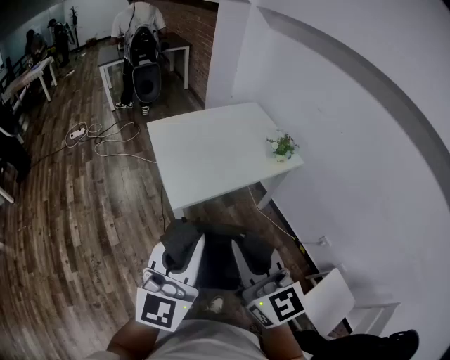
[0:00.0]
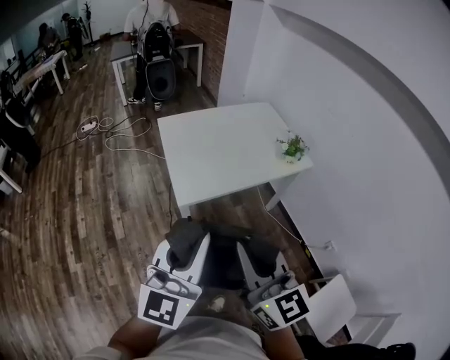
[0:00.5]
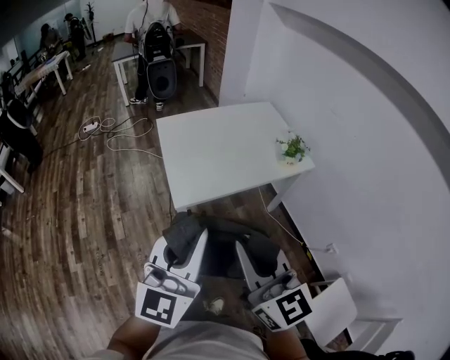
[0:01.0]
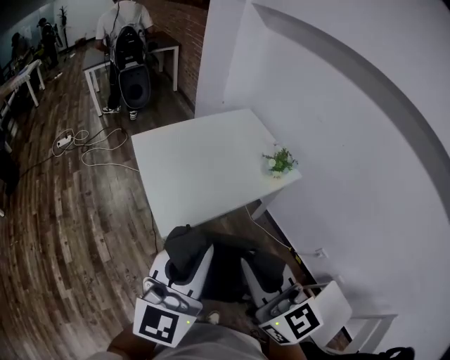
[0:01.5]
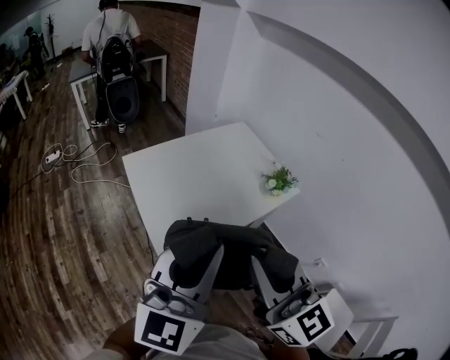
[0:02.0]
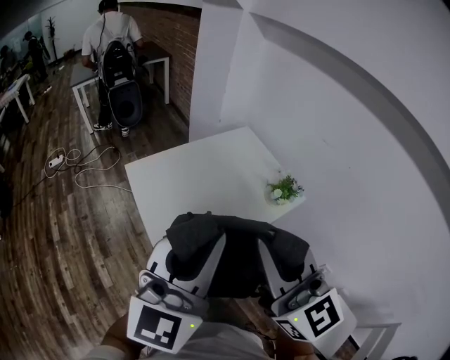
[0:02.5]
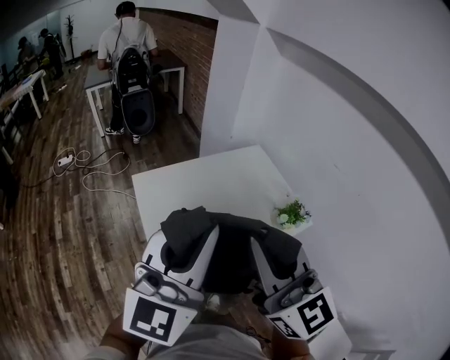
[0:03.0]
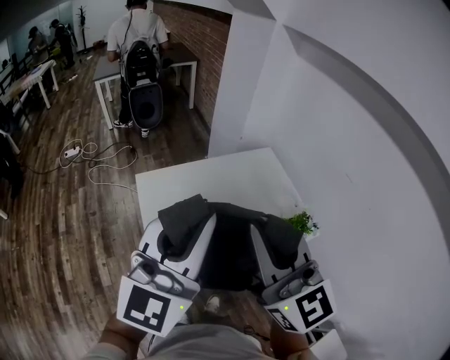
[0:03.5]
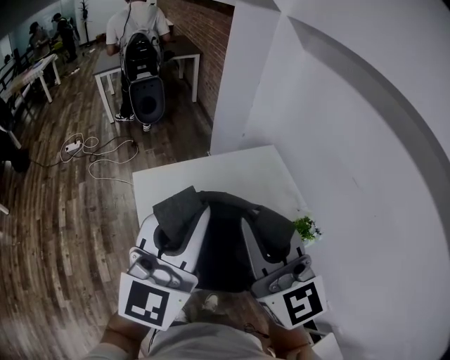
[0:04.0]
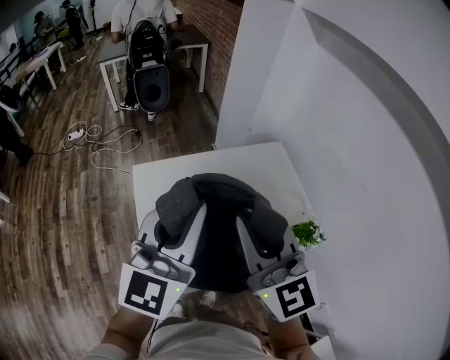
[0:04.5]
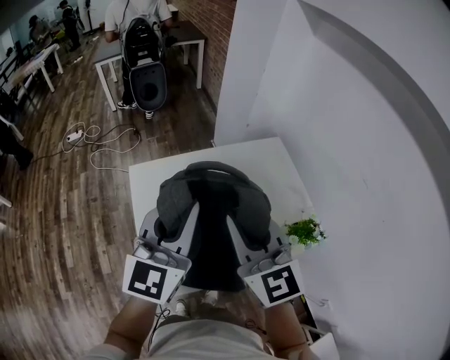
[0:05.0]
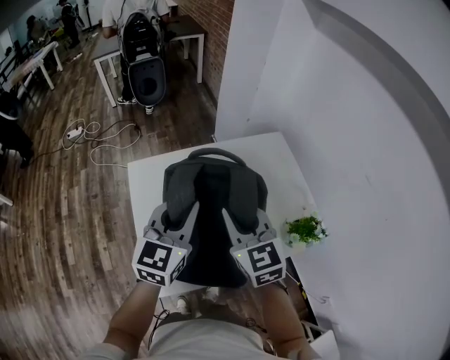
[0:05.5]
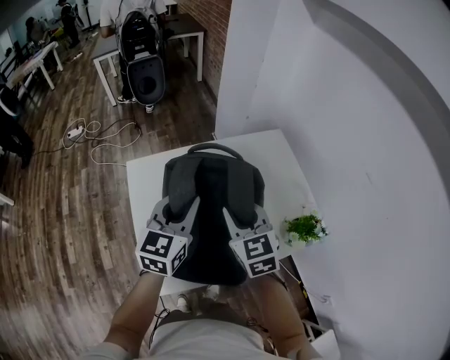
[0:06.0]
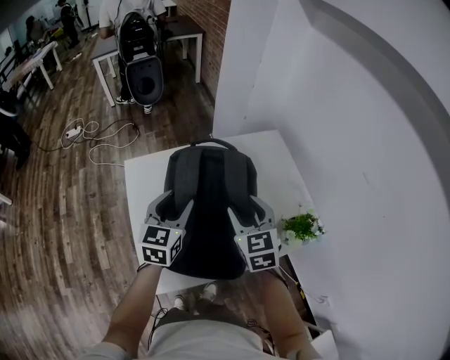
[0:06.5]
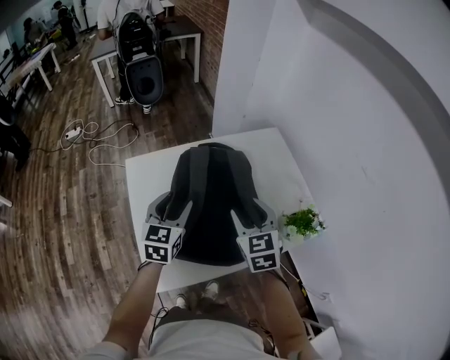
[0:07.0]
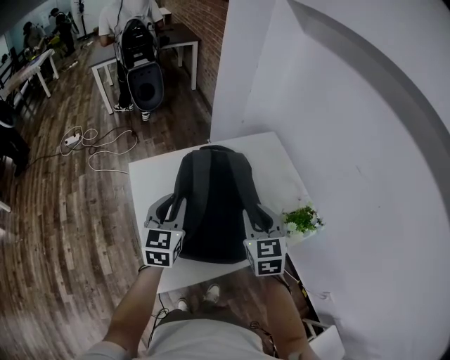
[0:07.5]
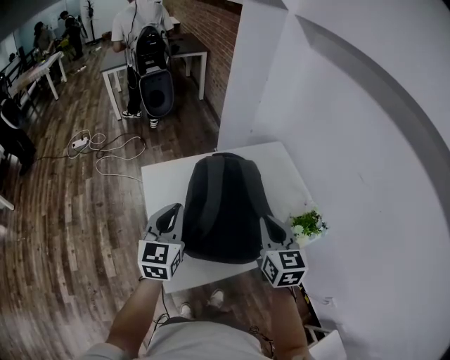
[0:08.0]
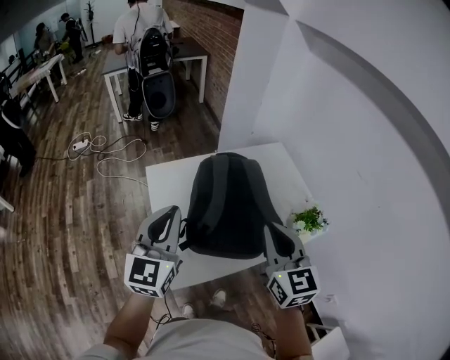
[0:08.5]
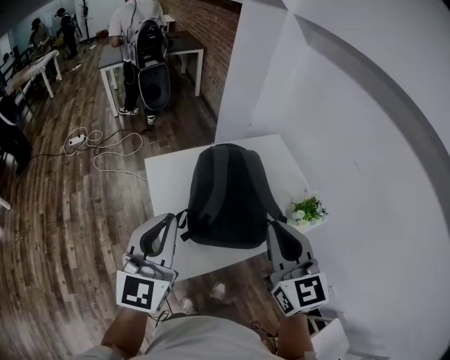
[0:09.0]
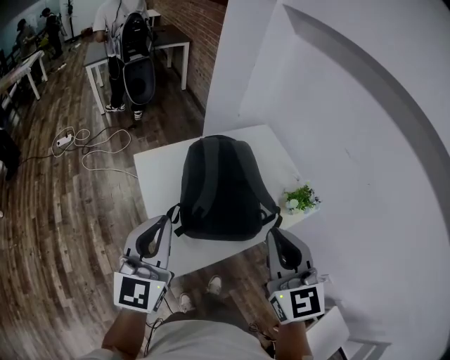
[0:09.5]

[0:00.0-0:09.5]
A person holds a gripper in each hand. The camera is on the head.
0:00.0 to 0:02.0: Both grippers travel together forward, roughly 25 cm.
0:02.0 to 0:04.0: The two grippers go some 30 cm forward.
0:04.0 to 0:05.5: The two grippers go about 25 cm downward and forward. The left gripper turns by some 30 degrees. The right gripper swivels about 30 degrees.
0:05.5 to 0:07.5: The left gripper is displaced downward and to the left by approximately 10 cm, and opens, then closes again, while the right gripper moves to the right and downward, about 10 cm, and opens up.
0:07.5 to 0:09.5: The left gripper travels backward, upward and to the left by some 25 cm, and closes up; the right gripper travels backward and upward by about 25 cm, and closes.

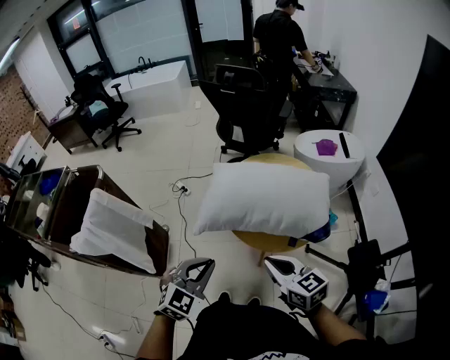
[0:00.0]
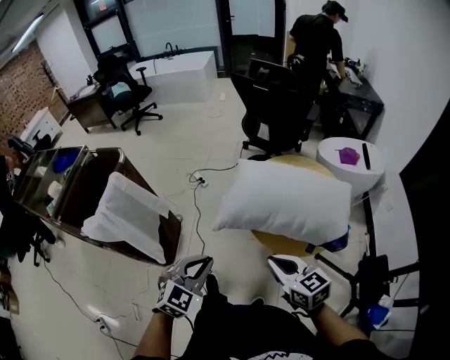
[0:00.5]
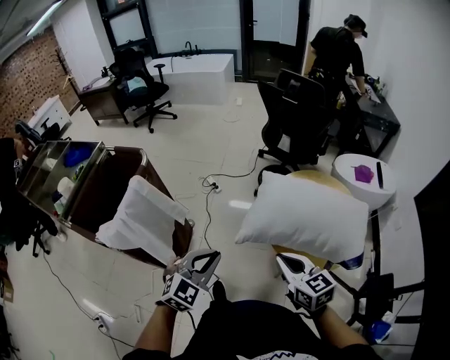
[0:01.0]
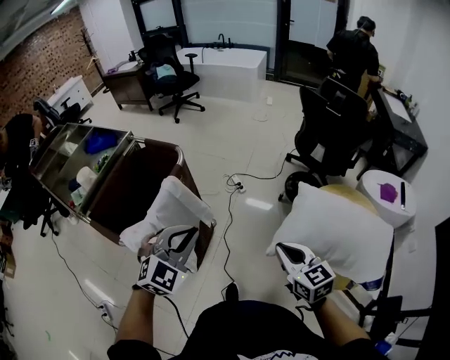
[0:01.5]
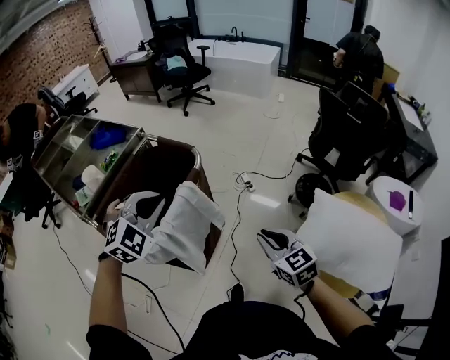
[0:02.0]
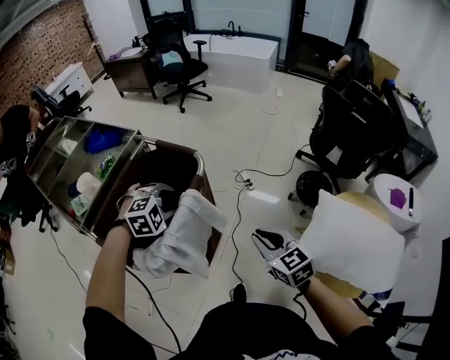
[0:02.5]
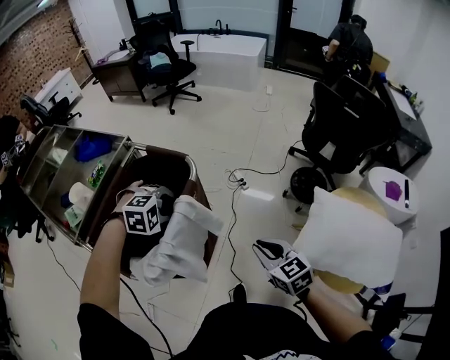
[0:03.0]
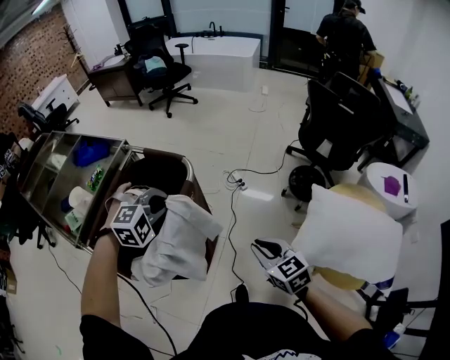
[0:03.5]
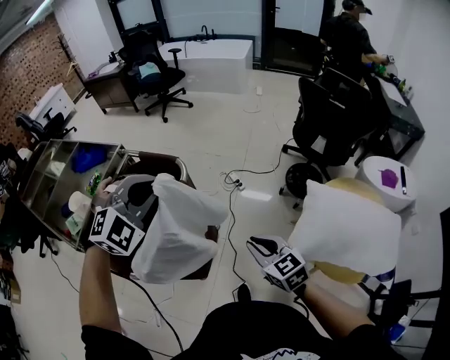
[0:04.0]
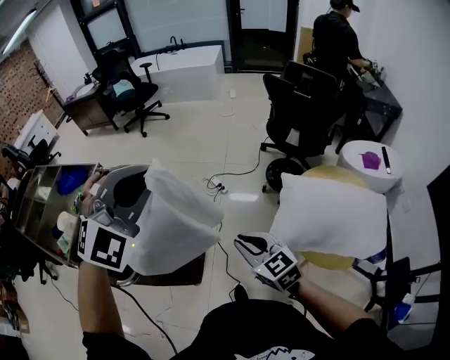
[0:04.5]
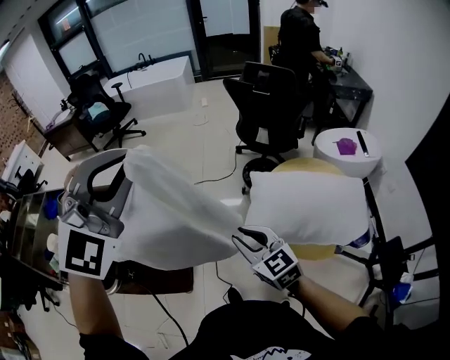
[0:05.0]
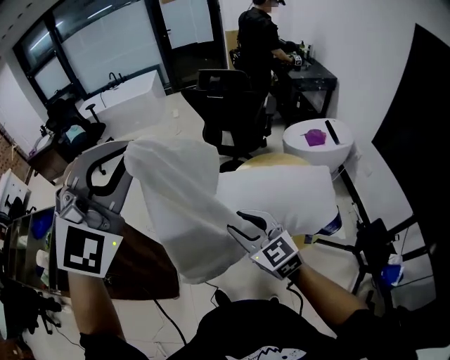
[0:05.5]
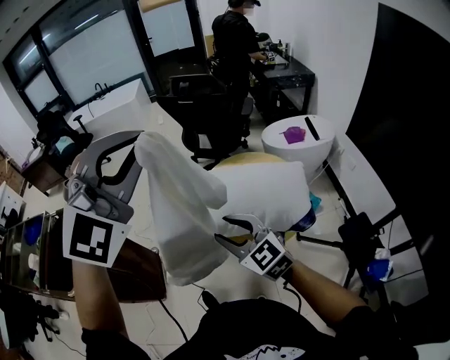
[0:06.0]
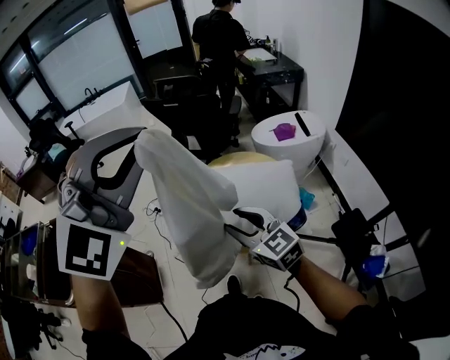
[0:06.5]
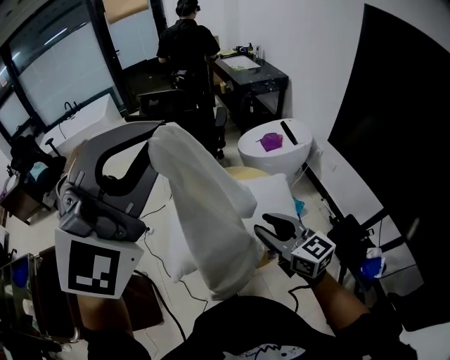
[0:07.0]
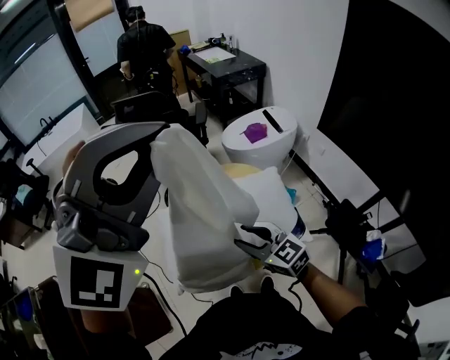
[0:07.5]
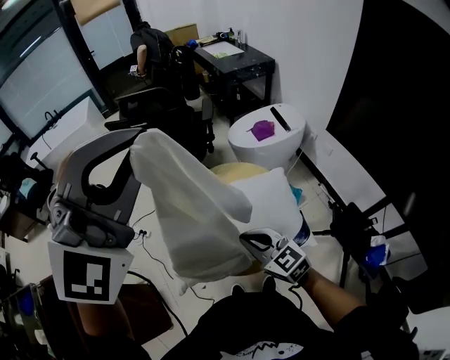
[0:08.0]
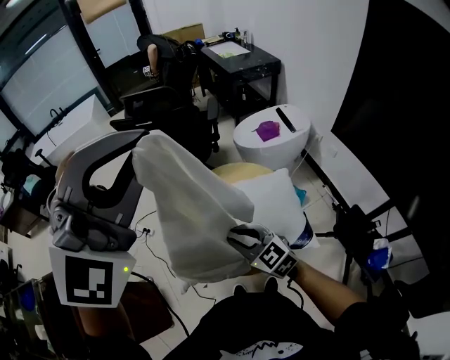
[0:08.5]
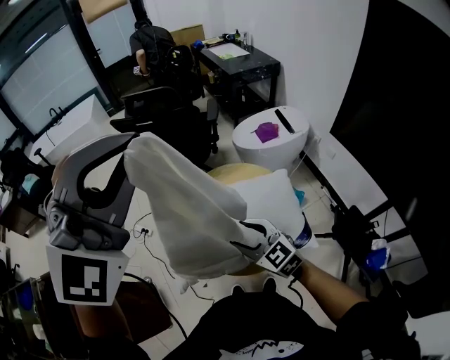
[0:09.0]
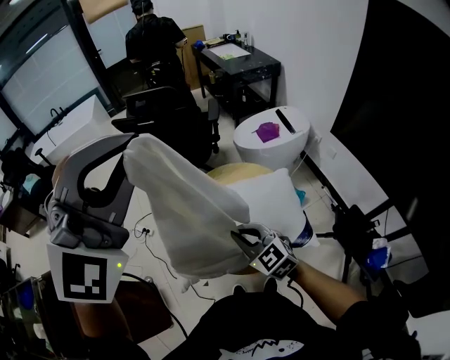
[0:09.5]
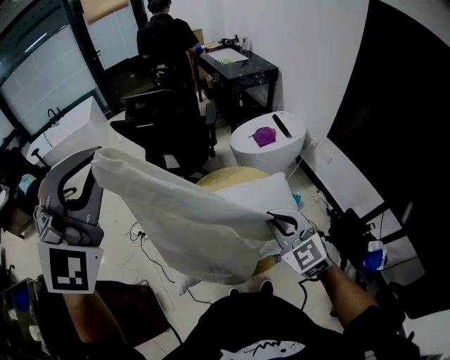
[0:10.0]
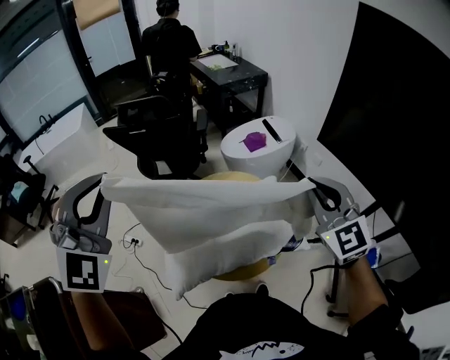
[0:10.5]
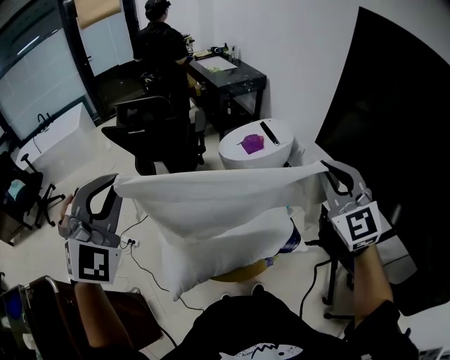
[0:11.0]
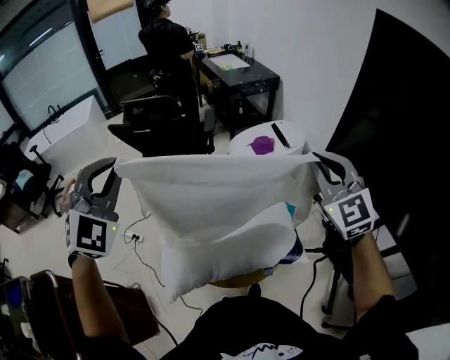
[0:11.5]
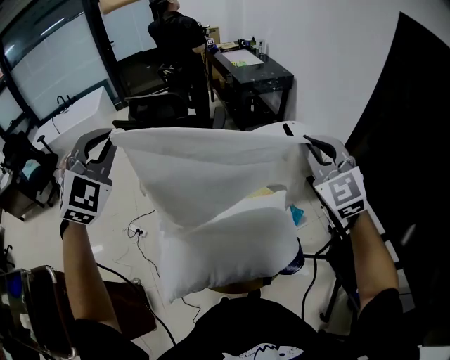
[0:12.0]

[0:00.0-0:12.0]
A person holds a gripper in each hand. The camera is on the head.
0:00.0 to 0:02.0: The pair of grippers is taken about 50 cm. The left gripper changes its angle by some 30 degrees. Meanwhile the right gripper rotates about 30 degrees.
0:02.0 to 0:04.0: The left gripper moves forward, about 5 cm, reaches about 15 cm downward, then returns, changes its angle by about 20 degrees, and opens and closes again.
0:04.0 to 0:06.0: The right gripper ends up some 40 cm from where it was, turns by roughly 20 degrees, and opens, while the left gripper shifts by approximately 60 cm, and changes its angle by about 40 degrees.
0:06.0 to 0:08.0: The left gripper shifts about 15 cm forward and to the right. The right gripper moves forward, to the right and downward, approximately 20 cm, and closes.
0:08.0 to 0:10.0: The right gripper is displaced upward and to the right by about 10 cm, rotates roughly 20 degrees, and opens, then closes again; the left gripper shifts approximately 10 cm to the left.
0:10.0 to 0:12.0: The left gripper is displaced forward and downward by some 20 cm, and swivels about 20 degrees; the right gripper shifts about 30 cm forward, upward and to the right.

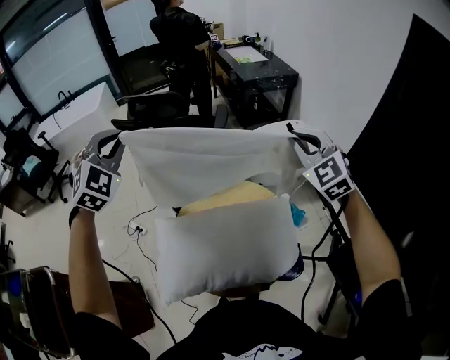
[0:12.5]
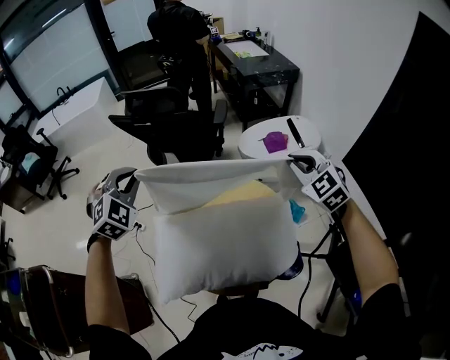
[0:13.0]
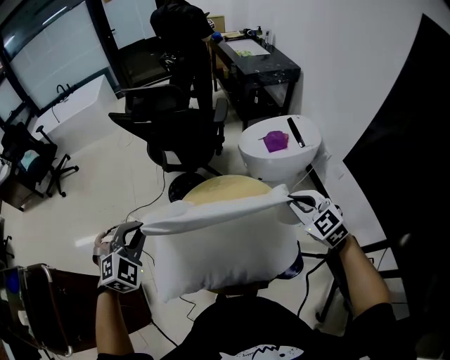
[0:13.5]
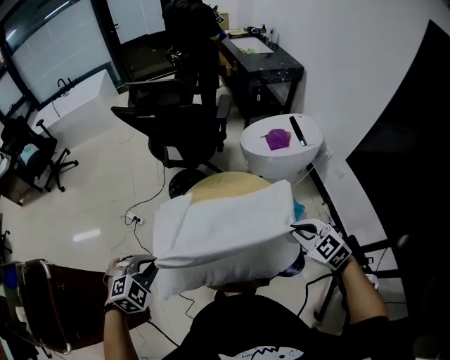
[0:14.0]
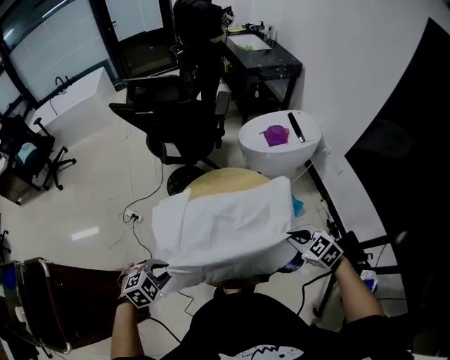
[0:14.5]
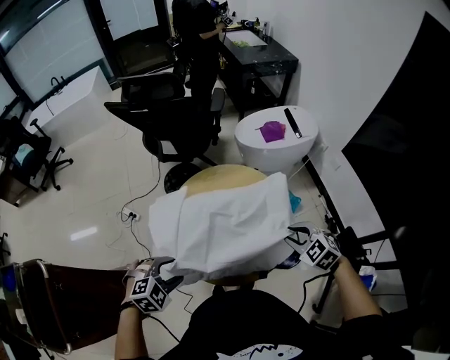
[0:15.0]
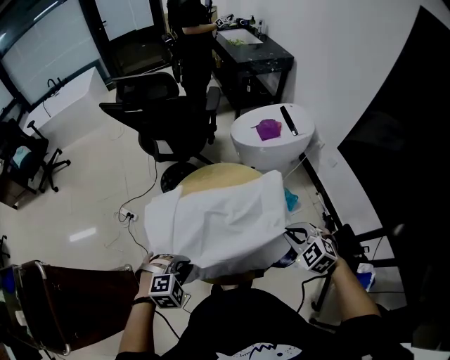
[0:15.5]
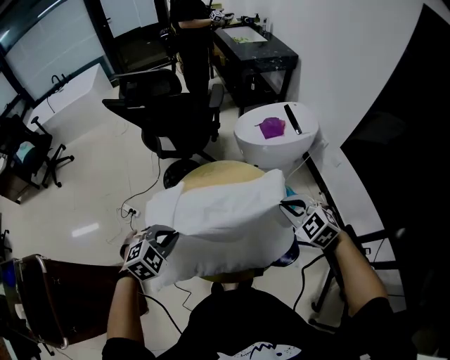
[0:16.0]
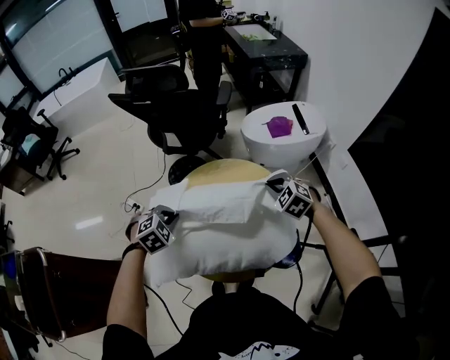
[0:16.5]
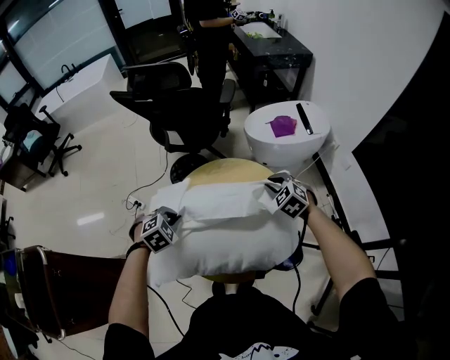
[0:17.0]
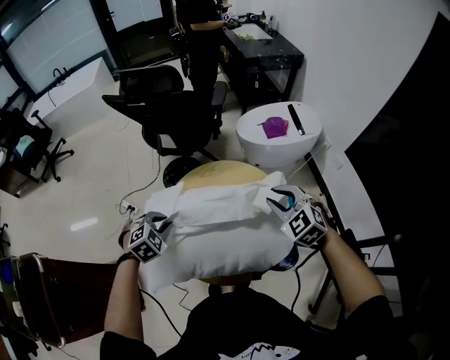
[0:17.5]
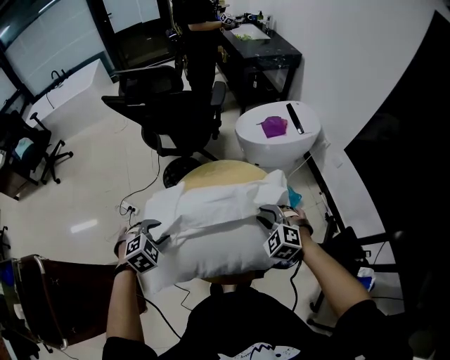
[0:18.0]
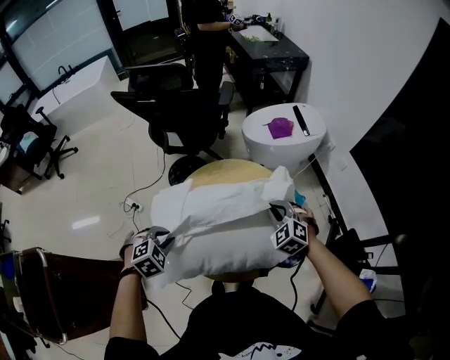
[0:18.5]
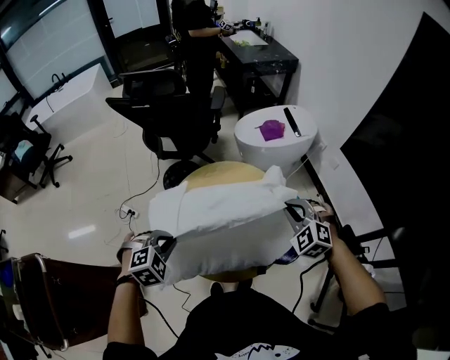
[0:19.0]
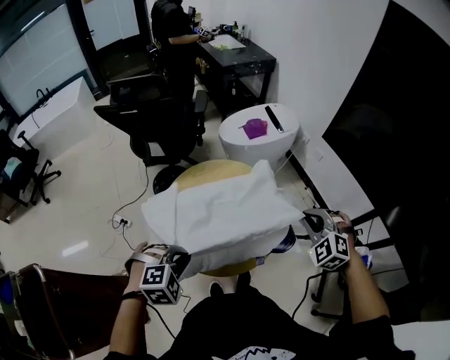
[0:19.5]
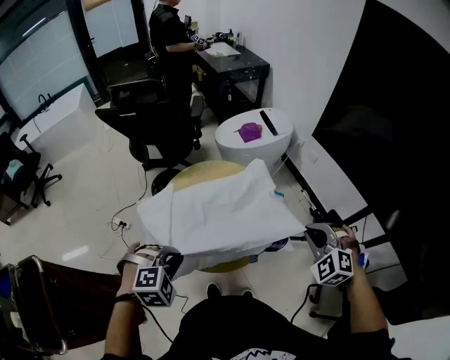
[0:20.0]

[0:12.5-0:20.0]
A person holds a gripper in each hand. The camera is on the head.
0:12.5 to 0:14.5: Both grippers move downward and backward, approximately 40 cm. The right gripper angles its fingers downward, by approximately 30 degrees. The left gripper tips its fingers downward by some 40 degrees.
0:14.5 to 0:16.5: Both grippers move forward, roughly 15 cm. The left gripper opens and closes again; the right gripper changes its angle by approximately 20 degrees, and opens and closes again.
0:16.5 to 0:18.0: The right gripper travels backward by approximately 10 cm, and opens its fingers, while the left gripper moves about 5 cm, and opens up.
0:18.0 to 0:20.0: The right gripper is displaced to the right, backward and upward by roughly 30 cm, and closes its fingers, while the left gripper is displaced backward, to the right and upward by about 20 cm, changes its angle by approximately 30 degrees, and closes up.
